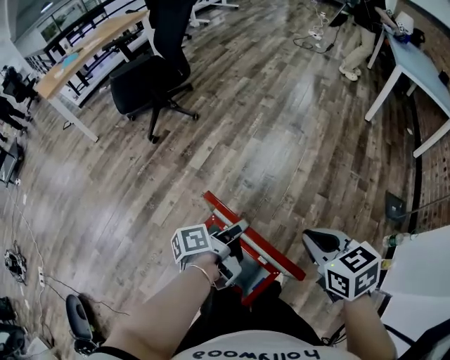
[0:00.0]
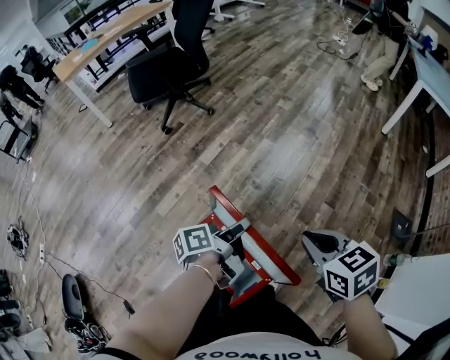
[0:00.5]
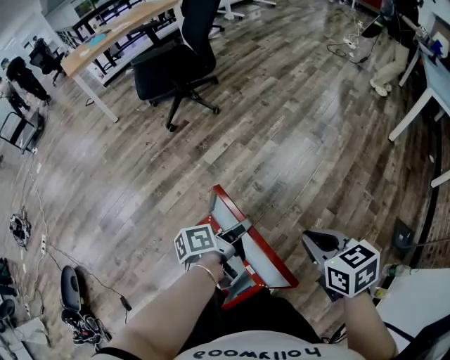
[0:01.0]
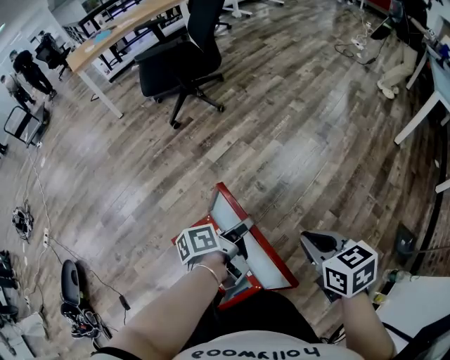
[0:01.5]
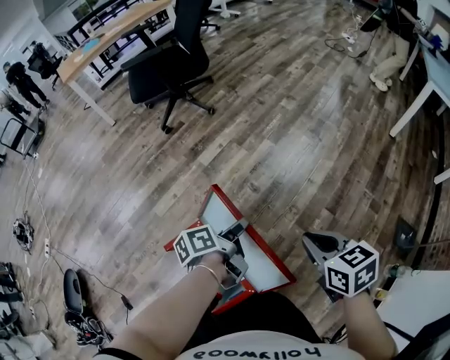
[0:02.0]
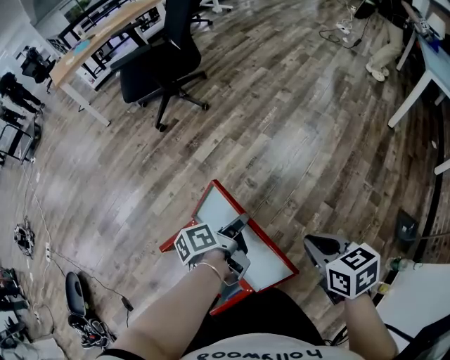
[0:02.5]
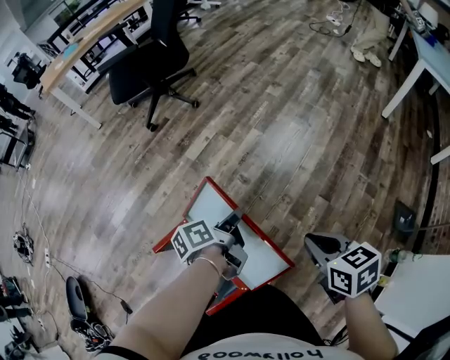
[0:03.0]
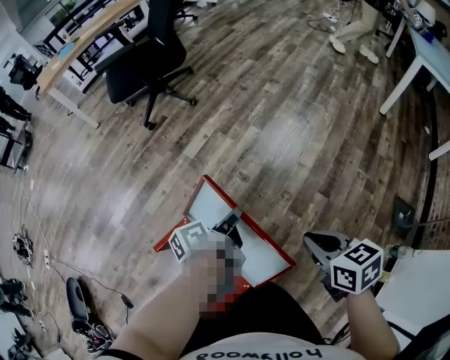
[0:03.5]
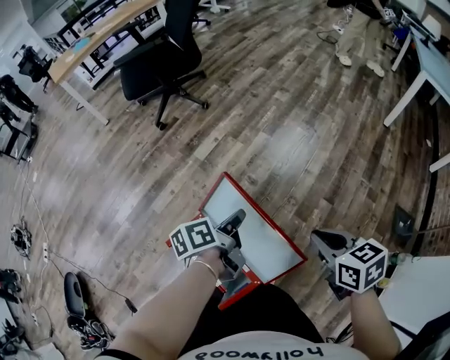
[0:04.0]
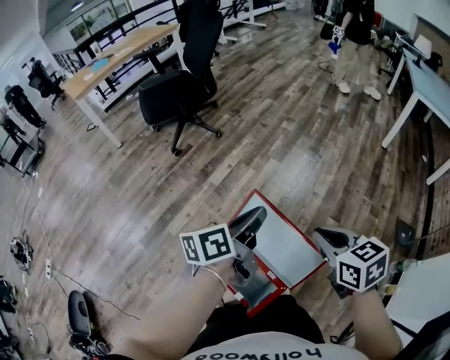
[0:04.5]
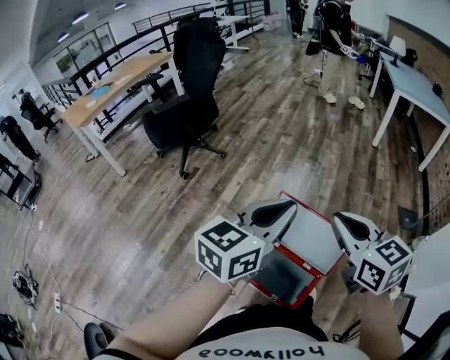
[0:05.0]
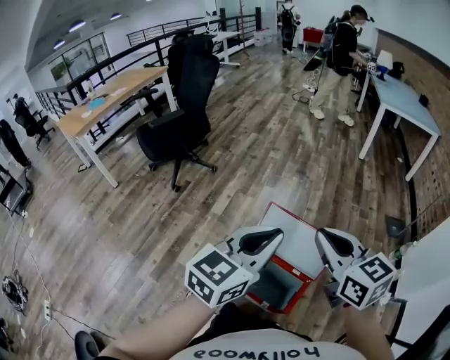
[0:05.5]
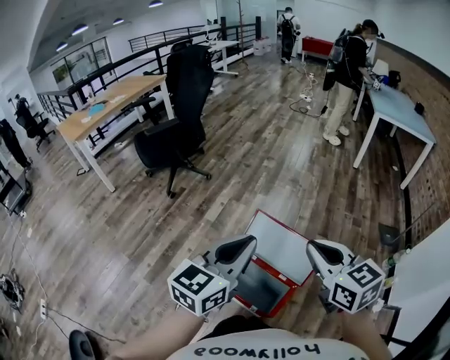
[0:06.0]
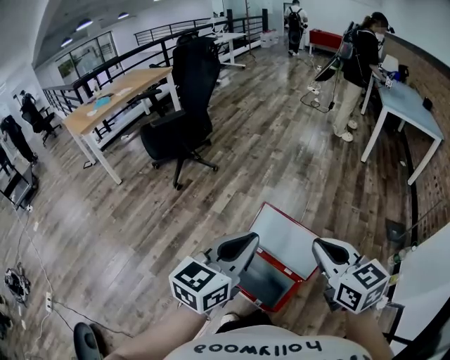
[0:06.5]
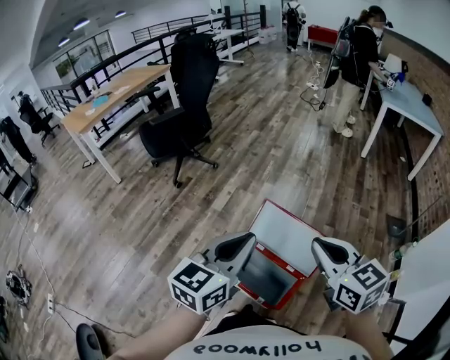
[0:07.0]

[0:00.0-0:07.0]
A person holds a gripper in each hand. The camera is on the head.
0:00.0 to 0:02.0: The left gripper travels to the right and forward by about 10 cm. The right gripper travels to the right, forward and downward by approximately 10 cm.
0:02.0 to 0:03.5: The right gripper shifts by some 5 cm. The left gripper closes its fingers.
0:03.5 to 0:05.0: Both grippers travel together upward, approximately 30 cm. The left gripper twists approximately 70 degrees clockwise, seen from behind. Meanwhile the right gripper rotates approximately 30 degrees.
0:05.0 to 0:07.0: Both grippers move backward, approximately 5 cm.

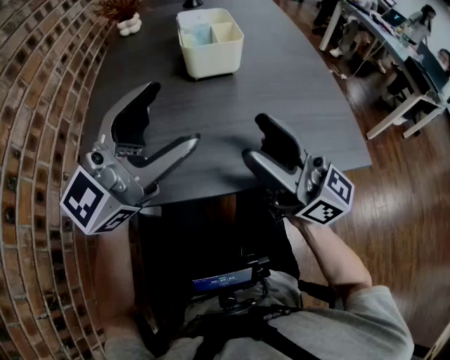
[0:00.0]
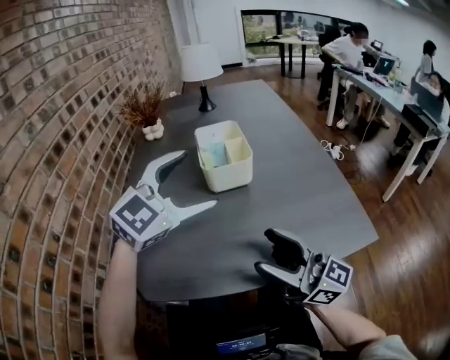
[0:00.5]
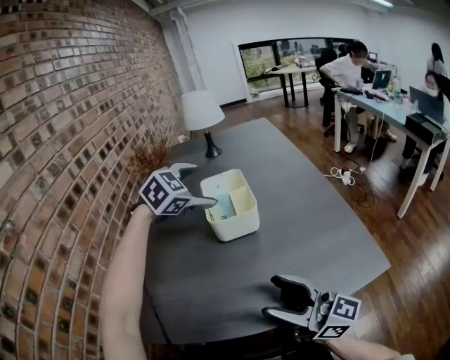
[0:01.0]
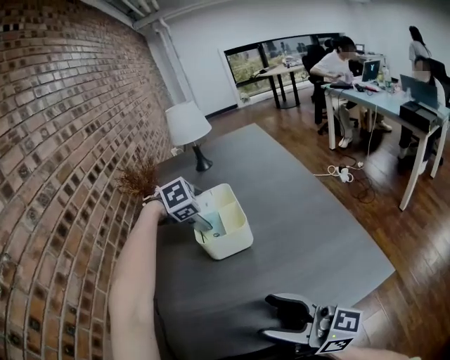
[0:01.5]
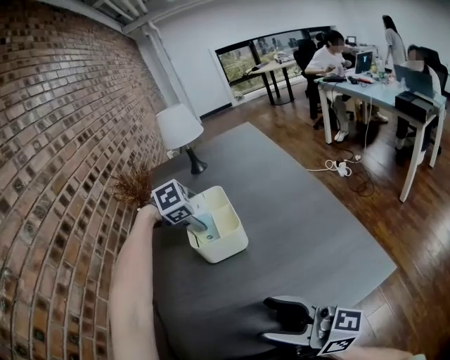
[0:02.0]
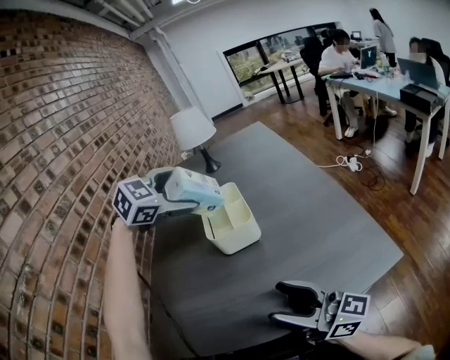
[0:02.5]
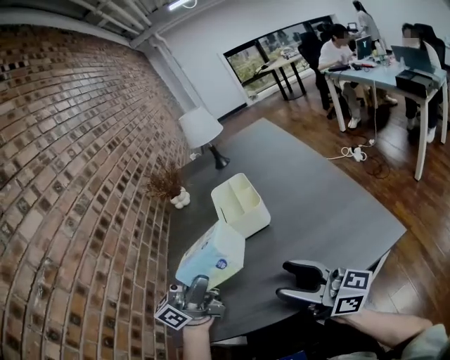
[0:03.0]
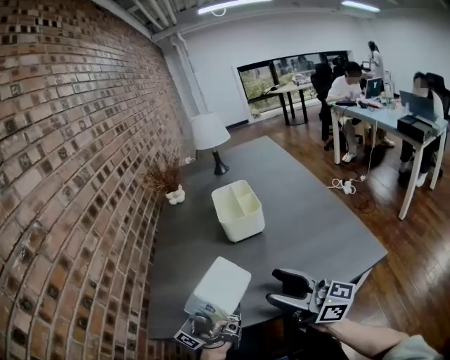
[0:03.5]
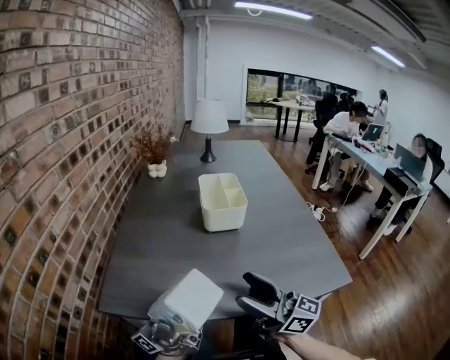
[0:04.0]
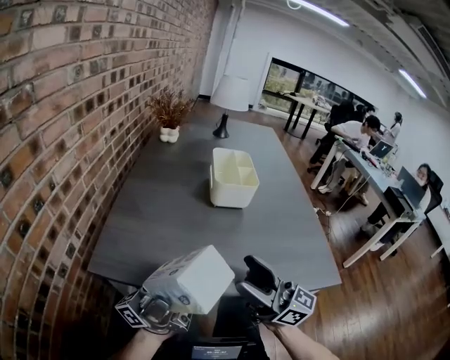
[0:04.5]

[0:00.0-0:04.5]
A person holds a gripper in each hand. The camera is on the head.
0:00.0 to 0:02.0: The left gripper goes some 35 cm forward, and tilts its fingers some 90 degrees downward.
0:02.0 to 0:04.5: The left gripper is displaced backward by about 50 cm, and tilts its fingers roughly 130 degrees upward; the right gripper ends up some 5 cm from where it was.

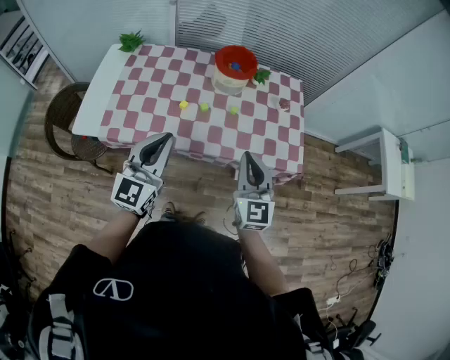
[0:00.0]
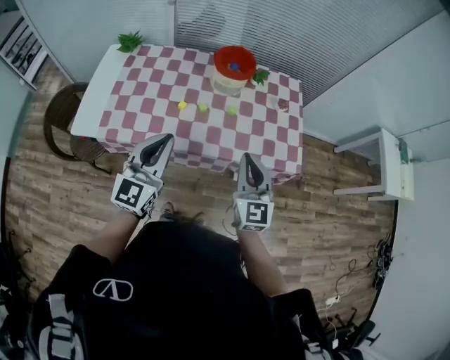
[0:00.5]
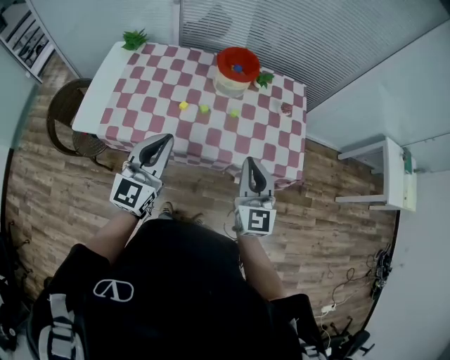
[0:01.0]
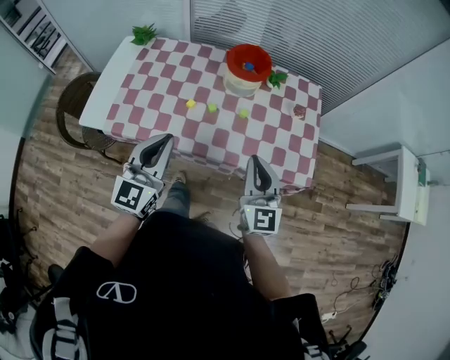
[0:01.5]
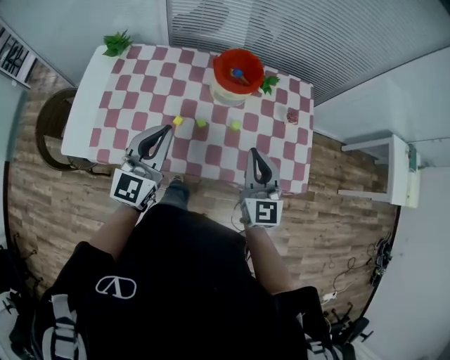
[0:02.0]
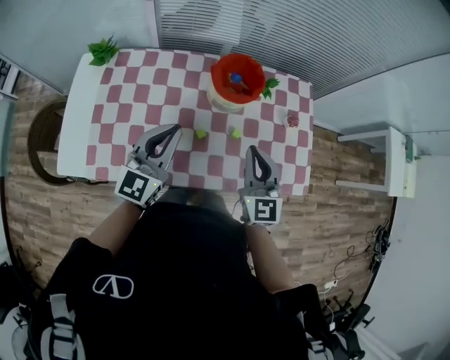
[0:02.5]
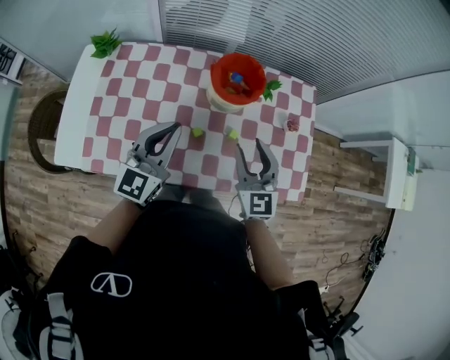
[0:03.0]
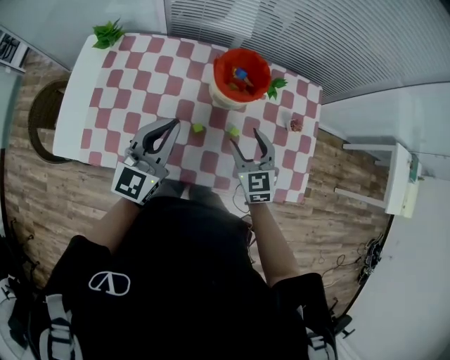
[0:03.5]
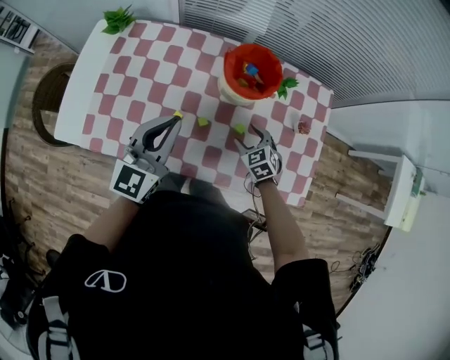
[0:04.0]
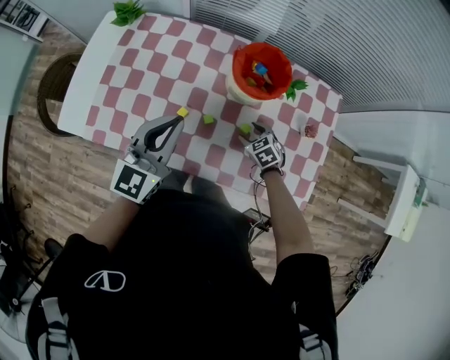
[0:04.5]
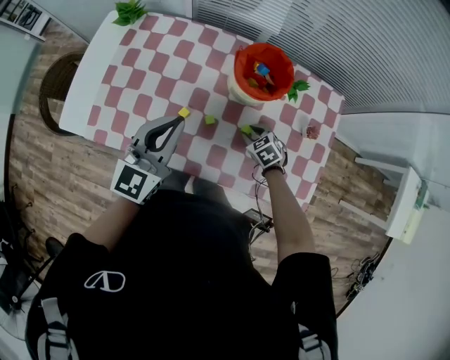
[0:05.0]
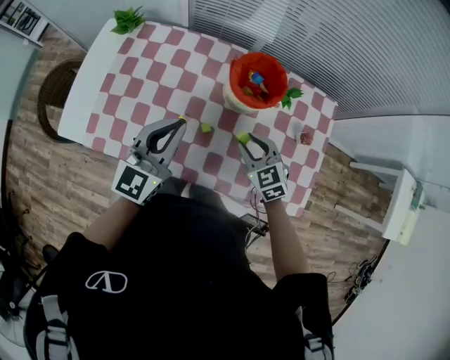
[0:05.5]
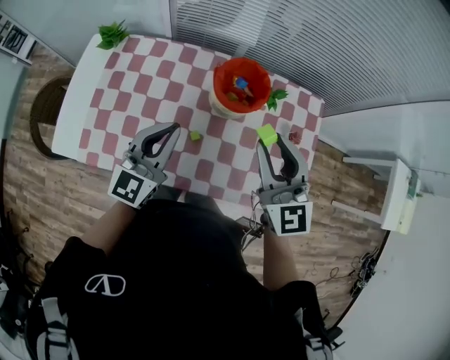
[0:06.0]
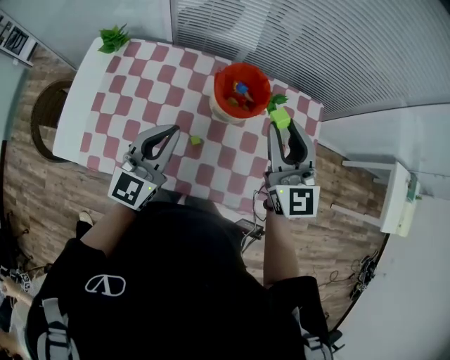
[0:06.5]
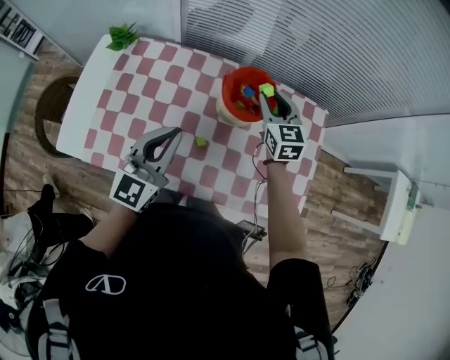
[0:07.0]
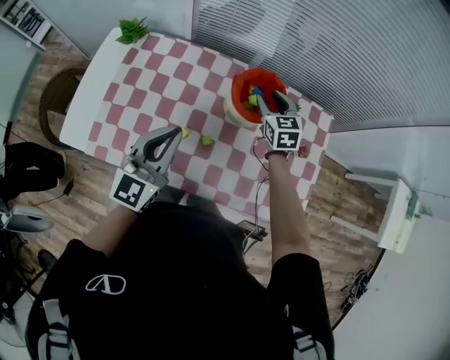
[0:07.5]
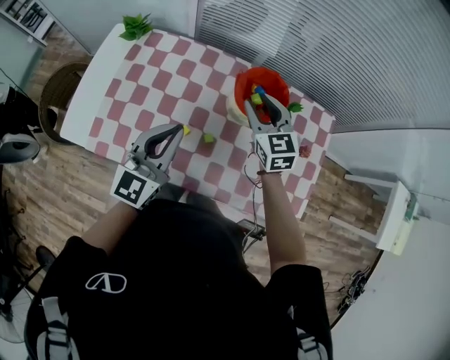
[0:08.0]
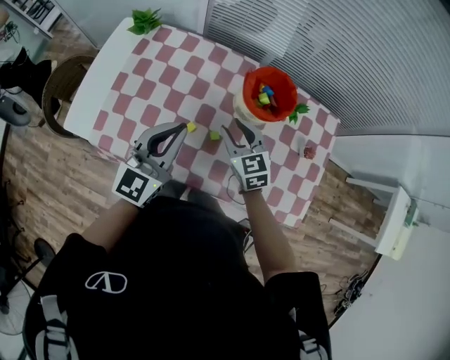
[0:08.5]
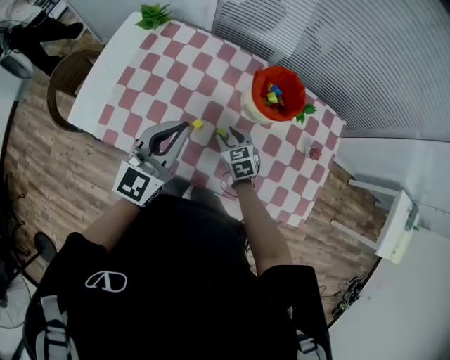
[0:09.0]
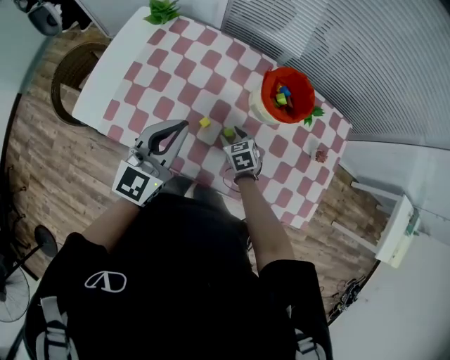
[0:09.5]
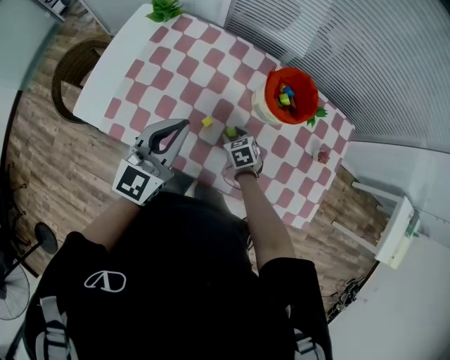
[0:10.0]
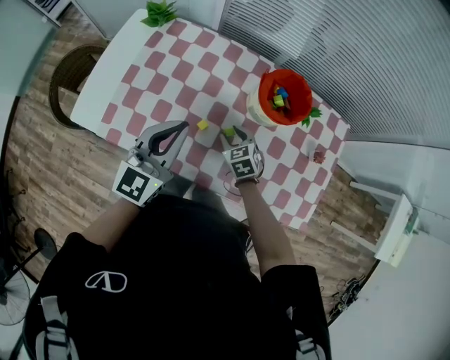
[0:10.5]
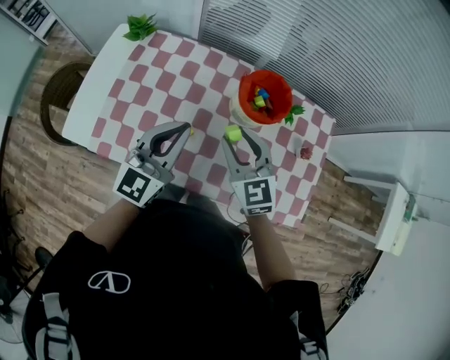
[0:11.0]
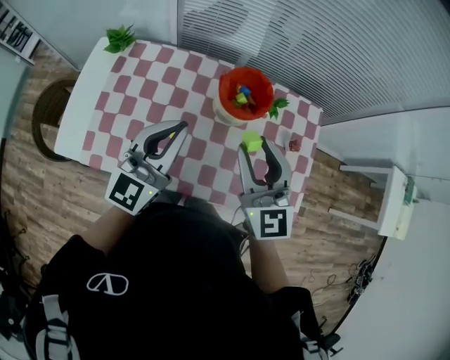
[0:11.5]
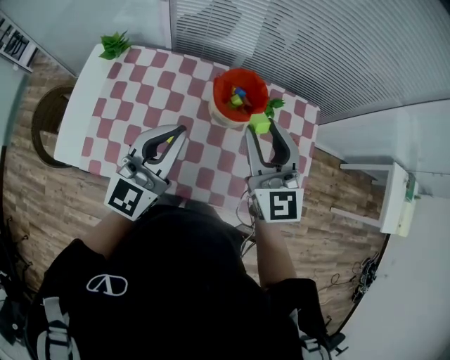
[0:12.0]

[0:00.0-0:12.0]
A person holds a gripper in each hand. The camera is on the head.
0:00.0 to 0:02.0: The two grippers go about 15 cm forward.
0:02.0 to 0:04.0: The left gripper heads forward, covering roughly 10 cm. Meanwhile the right gripper shifts roughly 30 cm downward and forward, points its fingers approximately 40 degrees further downward, and opens.
0:04.0 to 0:06.0: The right gripper heads upward, covering approximately 35 cm, points its fingers roughly 50 degrees further upward, and closes.
0:06.0 to 0:08.0: The right gripper shifts some 20 cm forward, downward and to the left.
0:08.0 to 0:10.0: The right gripper moves downward, some 25 cm, and tilts its fingers about 40 degrees downward. Meanwhile the left gripper moves to the left, some 5 cm.
0:10.0 to 0:12.0: The left gripper moves to the right and upward, some 15 cm. Meanwhile the right gripper travels upward by roughly 40 cm, and tilts its fingers roughly 60 degrees upward.

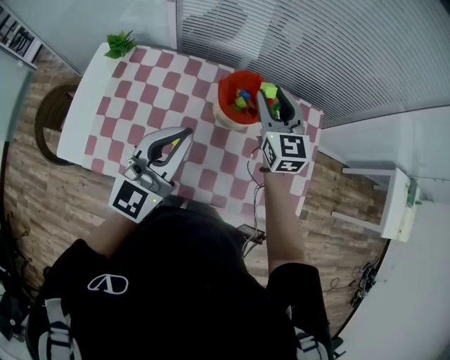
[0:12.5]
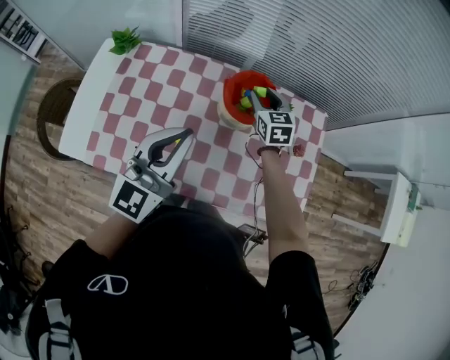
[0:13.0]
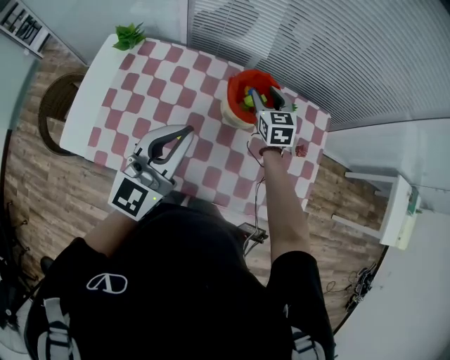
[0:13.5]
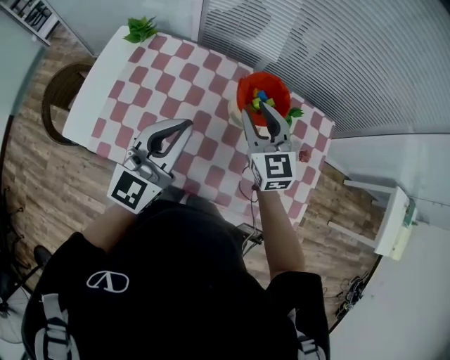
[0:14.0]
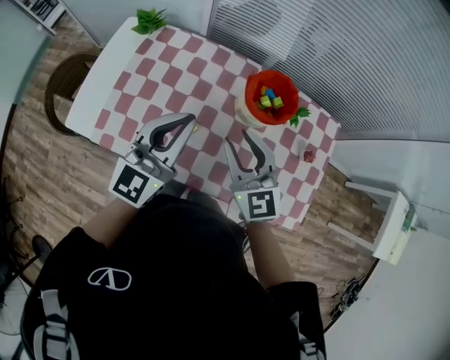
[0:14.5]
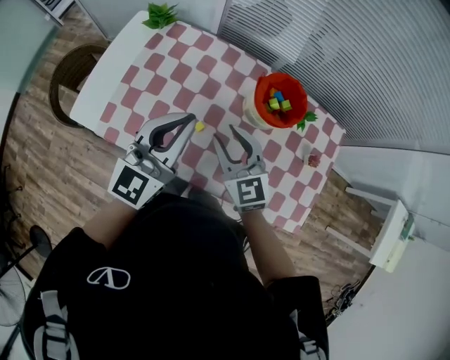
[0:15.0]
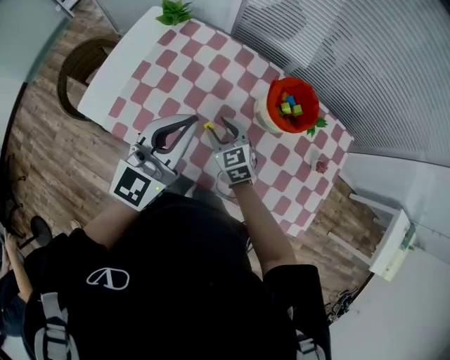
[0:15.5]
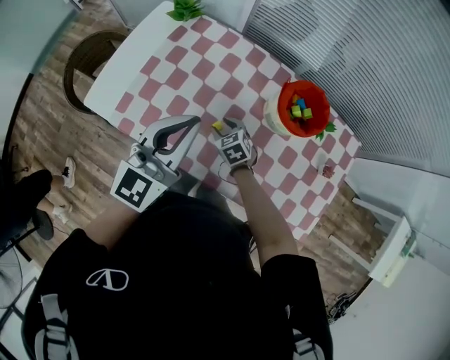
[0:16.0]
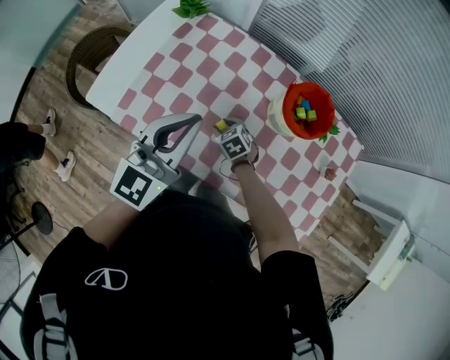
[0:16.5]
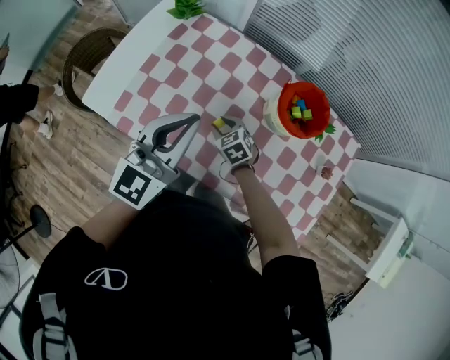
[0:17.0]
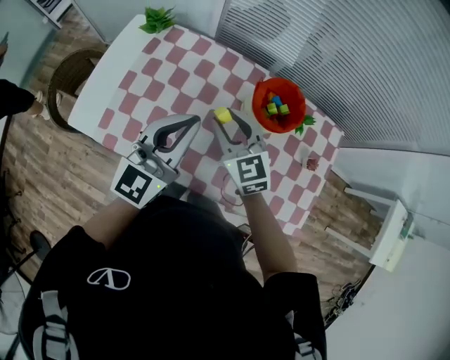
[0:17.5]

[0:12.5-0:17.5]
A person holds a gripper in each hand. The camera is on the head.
0:12.5 to 0:15.0: The left gripper moves to the left, about 10 cm, while the right gripper shifts approximately 25 cm to the left, backward and downward, and turns by approximately 20 degrees.
0:15.0 to 0:17.5: The right gripper shifts approximately 5 cm forward, and travels downward and back again, approximately 25 cm each way.
